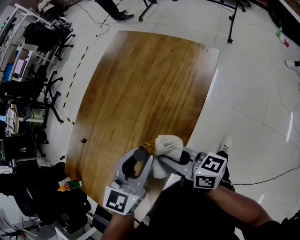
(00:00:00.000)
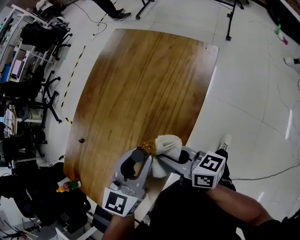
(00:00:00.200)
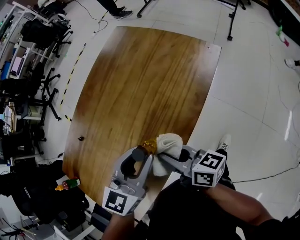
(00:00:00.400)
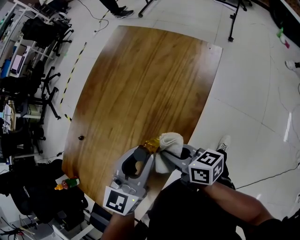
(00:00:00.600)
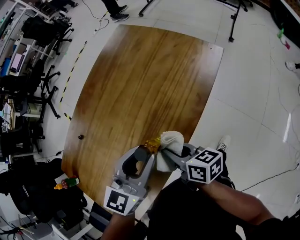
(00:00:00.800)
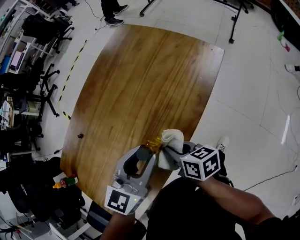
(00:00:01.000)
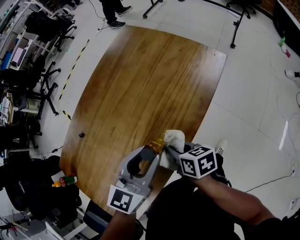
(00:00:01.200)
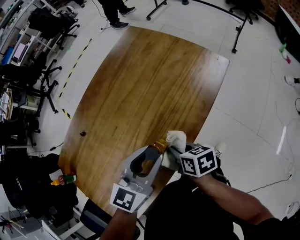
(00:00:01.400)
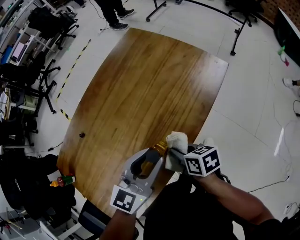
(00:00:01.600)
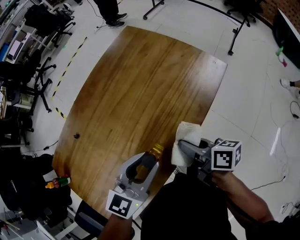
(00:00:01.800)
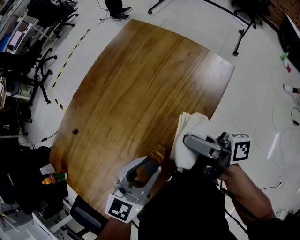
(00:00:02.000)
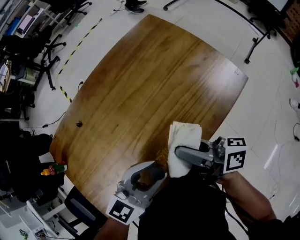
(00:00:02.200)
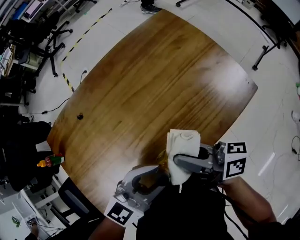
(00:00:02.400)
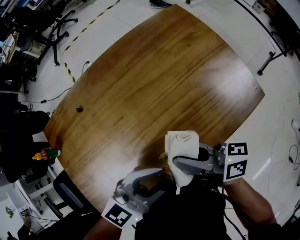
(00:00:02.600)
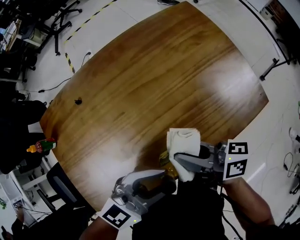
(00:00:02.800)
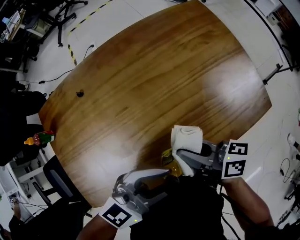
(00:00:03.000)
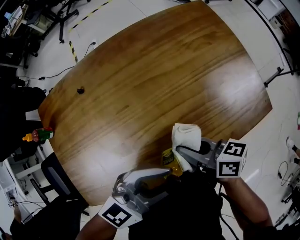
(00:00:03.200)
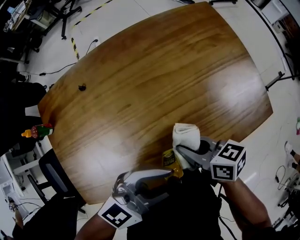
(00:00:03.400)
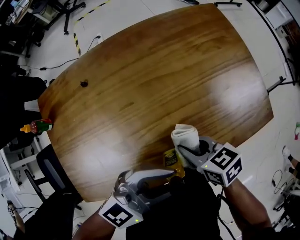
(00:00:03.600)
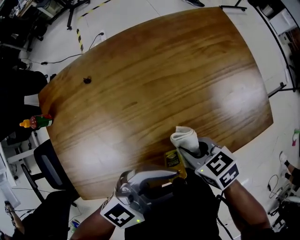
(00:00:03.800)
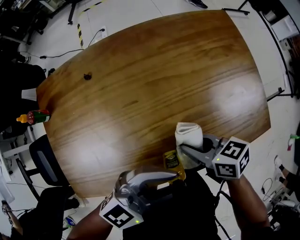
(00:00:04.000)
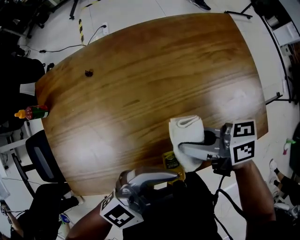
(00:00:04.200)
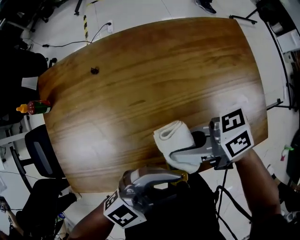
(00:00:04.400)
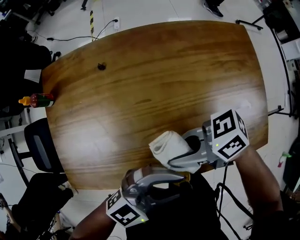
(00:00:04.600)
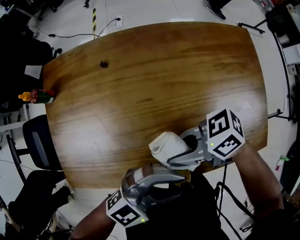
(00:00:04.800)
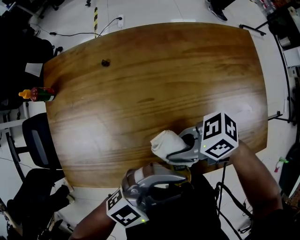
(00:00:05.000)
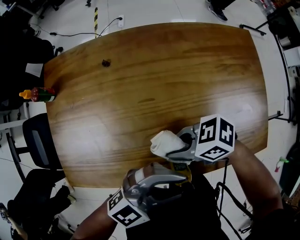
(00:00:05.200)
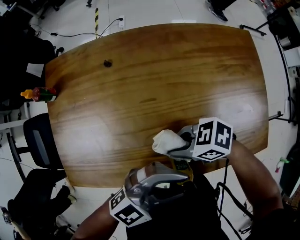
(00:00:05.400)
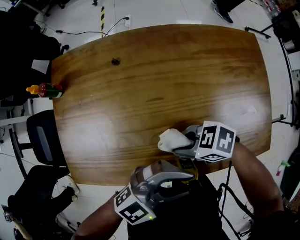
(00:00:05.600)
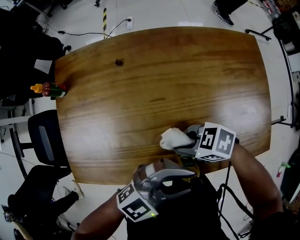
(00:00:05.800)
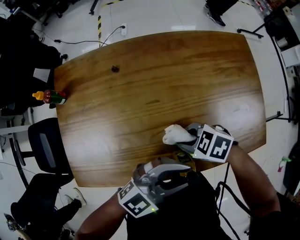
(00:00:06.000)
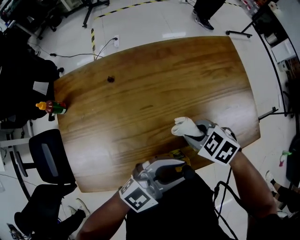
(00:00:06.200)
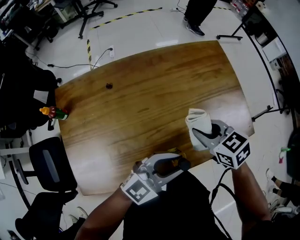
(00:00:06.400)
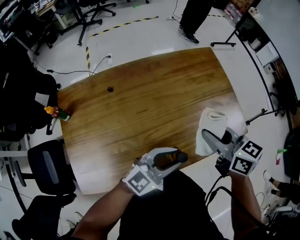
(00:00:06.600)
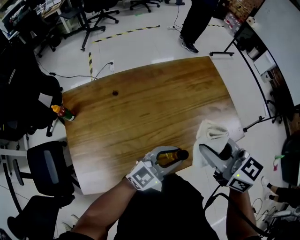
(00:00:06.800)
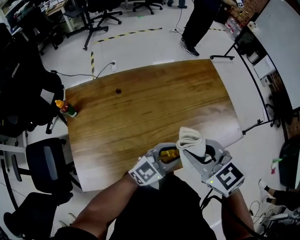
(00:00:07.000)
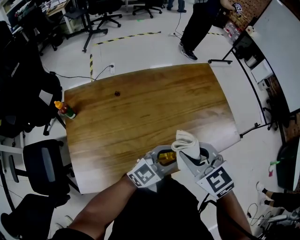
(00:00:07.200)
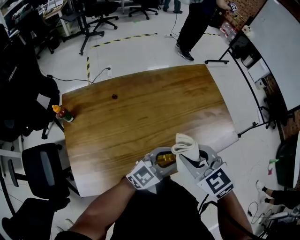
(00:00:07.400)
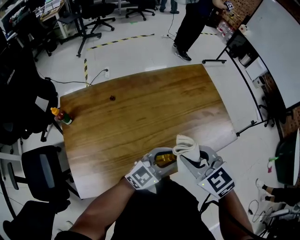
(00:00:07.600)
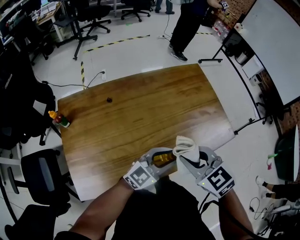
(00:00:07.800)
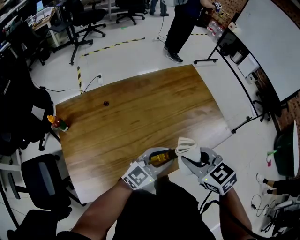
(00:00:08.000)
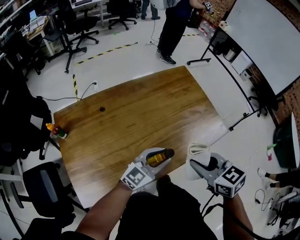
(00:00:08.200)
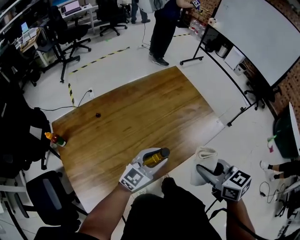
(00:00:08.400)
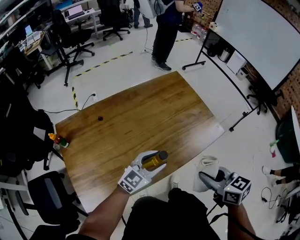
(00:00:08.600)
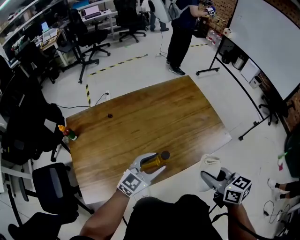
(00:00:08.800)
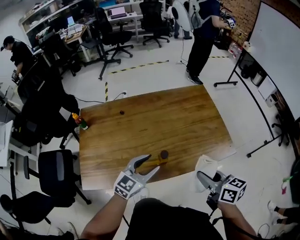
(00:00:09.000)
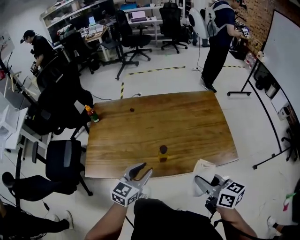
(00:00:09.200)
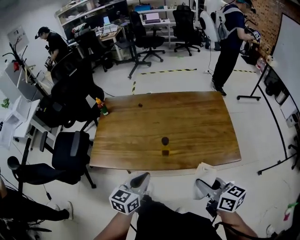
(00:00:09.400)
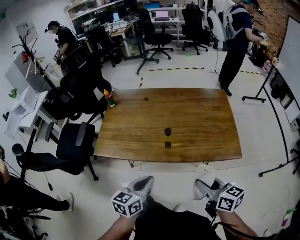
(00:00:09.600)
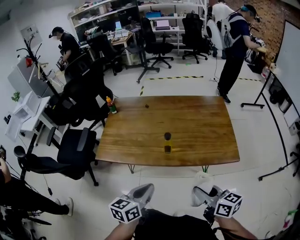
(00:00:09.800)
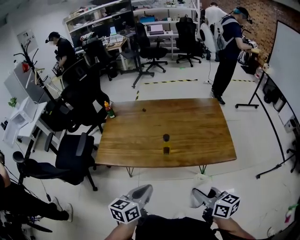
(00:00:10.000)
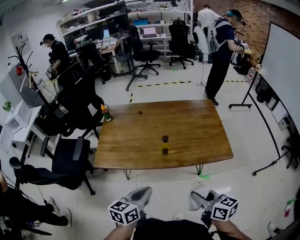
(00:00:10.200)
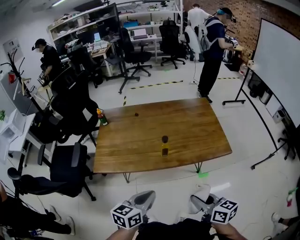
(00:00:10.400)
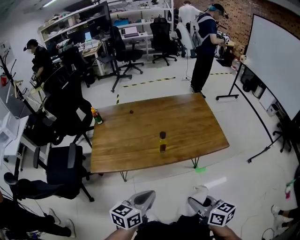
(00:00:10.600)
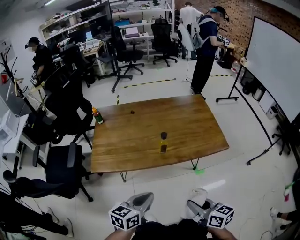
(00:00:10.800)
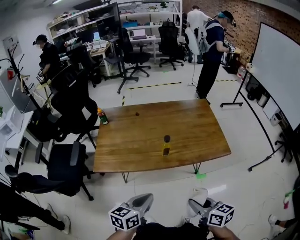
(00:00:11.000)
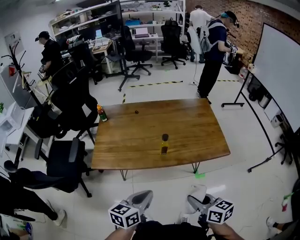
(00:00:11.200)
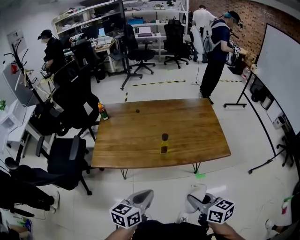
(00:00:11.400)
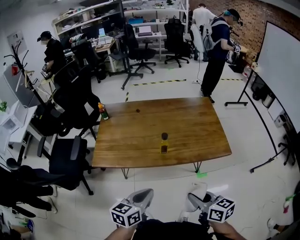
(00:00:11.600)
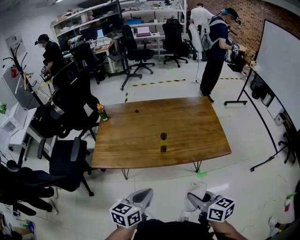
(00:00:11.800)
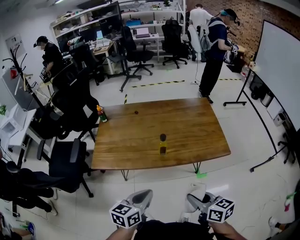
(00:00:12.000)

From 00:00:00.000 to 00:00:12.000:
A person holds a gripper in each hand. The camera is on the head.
From 00:00:00.000 to 00:00:01.600: The right gripper heads downward, covering roughly 10 cm, and points its fingers approximately 40 degrees further downward.
From 00:00:01.600 to 00:00:03.000: The right gripper is displaced upward by about 10 cm, and tilts its fingers about 30 degrees upward.
From 00:00:03.000 to 00:00:04.400: The right gripper shifts by some 10 cm, and turns by some 50 degrees.
From 00:00:04.400 to 00:00:06.000: The right gripper goes approximately 10 cm downward, and tilts its fingers some 40 degrees downward.
From 00:00:06.000 to 00:00:07.600: The right gripper heads upward, covering approximately 20 cm, and swivels about 50 degrees.
From 00:00:07.600 to 00:00:09.000: The left gripper swivels some 30 degrees, and opens up, while the right gripper heads to the right, covering approximately 20 cm, and twists roughly 40 degrees clockwise, seen from behind.
From 00:00:09.000 to 00:00:10.400: The two grippers go roughly 20 cm backward. The left gripper rotates some 40 degrees, and closes up.
From 00:00:10.400 to 00:00:12.000: The grippers move only a little.

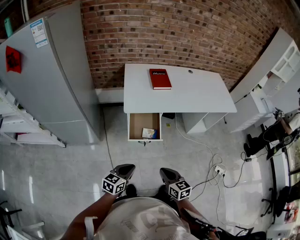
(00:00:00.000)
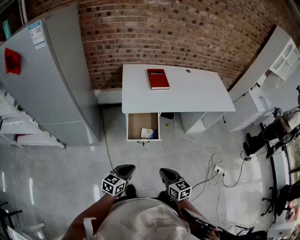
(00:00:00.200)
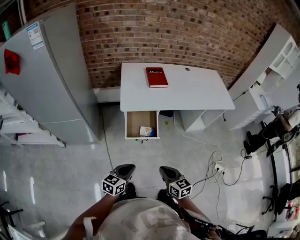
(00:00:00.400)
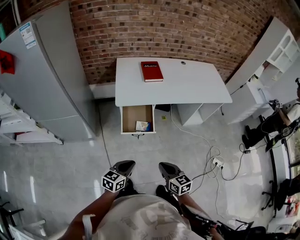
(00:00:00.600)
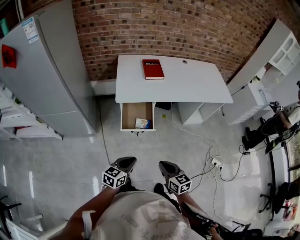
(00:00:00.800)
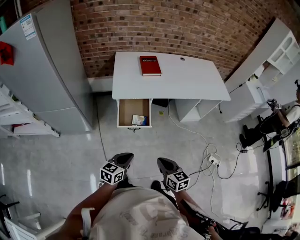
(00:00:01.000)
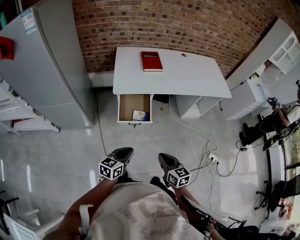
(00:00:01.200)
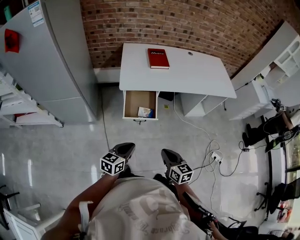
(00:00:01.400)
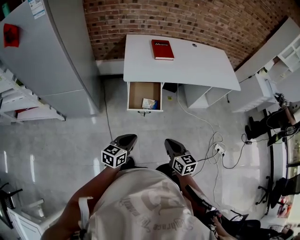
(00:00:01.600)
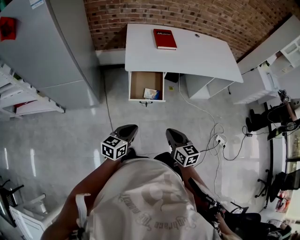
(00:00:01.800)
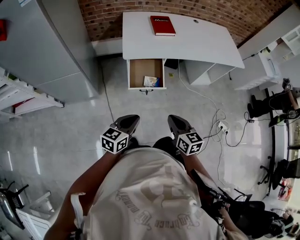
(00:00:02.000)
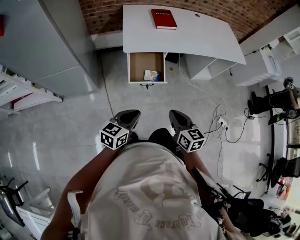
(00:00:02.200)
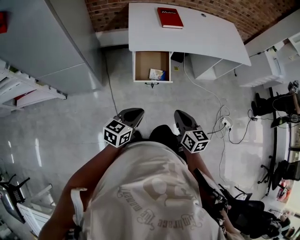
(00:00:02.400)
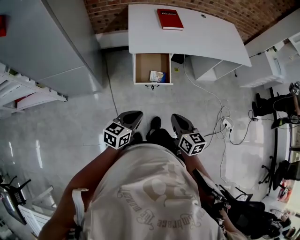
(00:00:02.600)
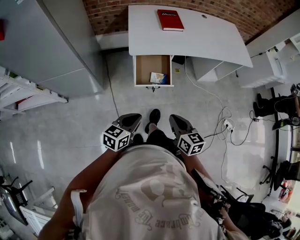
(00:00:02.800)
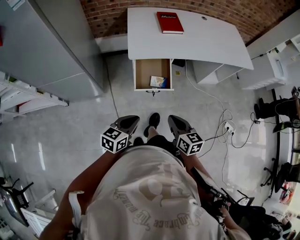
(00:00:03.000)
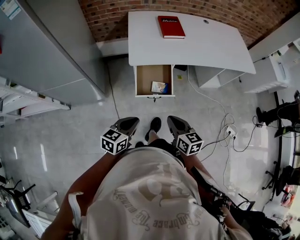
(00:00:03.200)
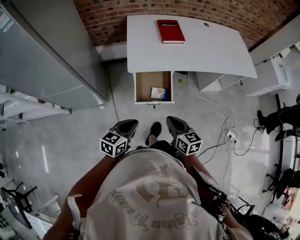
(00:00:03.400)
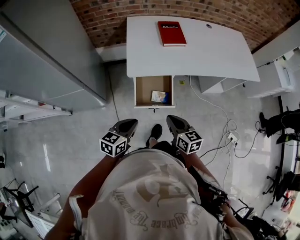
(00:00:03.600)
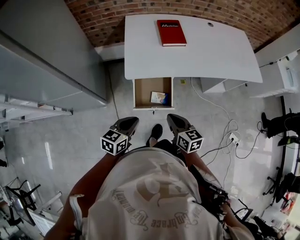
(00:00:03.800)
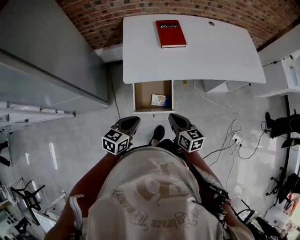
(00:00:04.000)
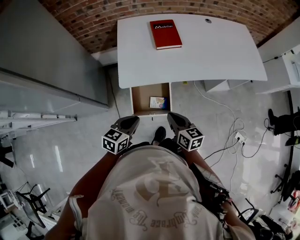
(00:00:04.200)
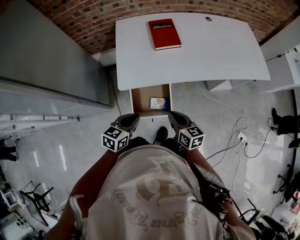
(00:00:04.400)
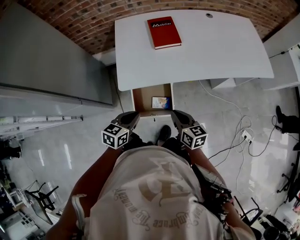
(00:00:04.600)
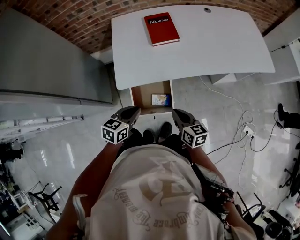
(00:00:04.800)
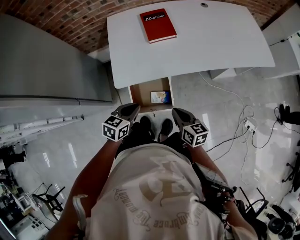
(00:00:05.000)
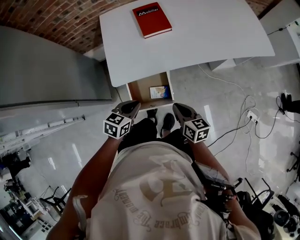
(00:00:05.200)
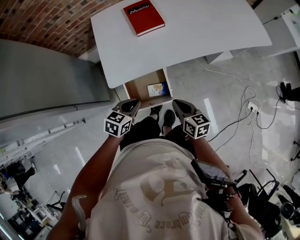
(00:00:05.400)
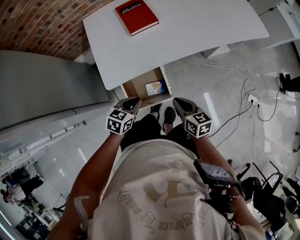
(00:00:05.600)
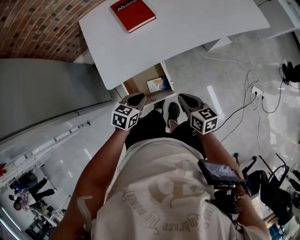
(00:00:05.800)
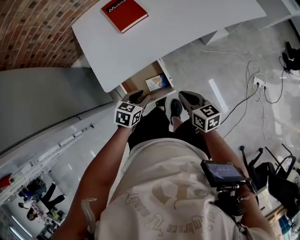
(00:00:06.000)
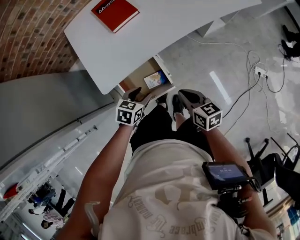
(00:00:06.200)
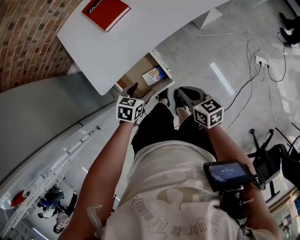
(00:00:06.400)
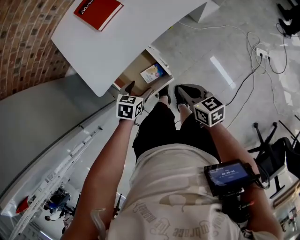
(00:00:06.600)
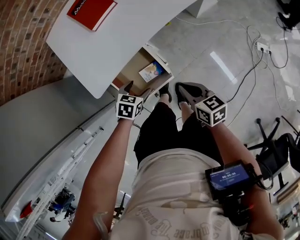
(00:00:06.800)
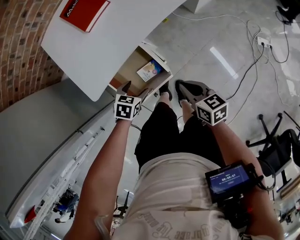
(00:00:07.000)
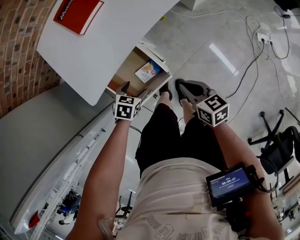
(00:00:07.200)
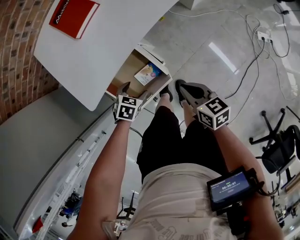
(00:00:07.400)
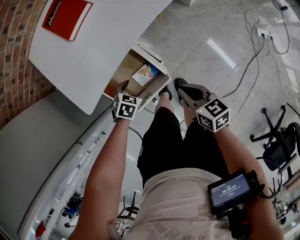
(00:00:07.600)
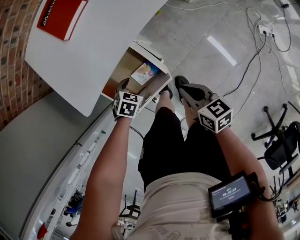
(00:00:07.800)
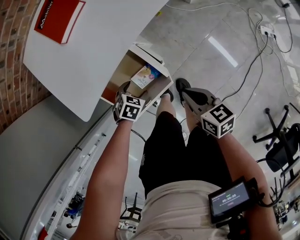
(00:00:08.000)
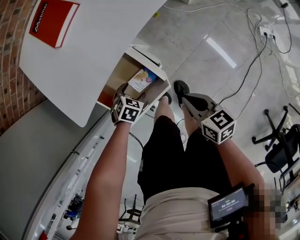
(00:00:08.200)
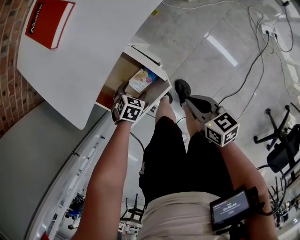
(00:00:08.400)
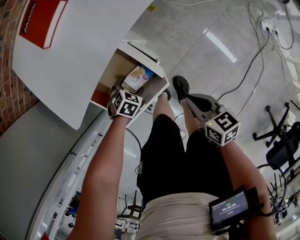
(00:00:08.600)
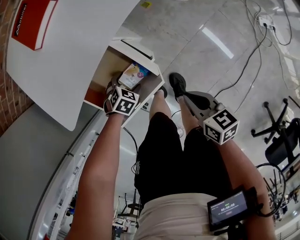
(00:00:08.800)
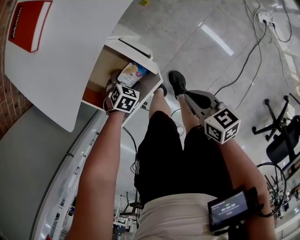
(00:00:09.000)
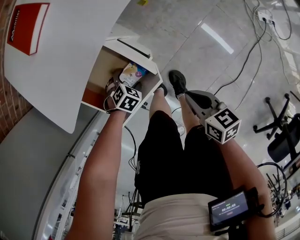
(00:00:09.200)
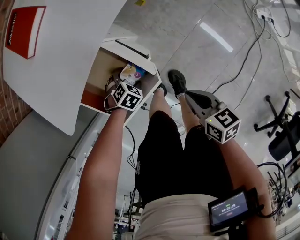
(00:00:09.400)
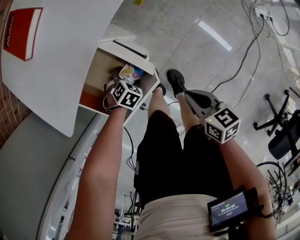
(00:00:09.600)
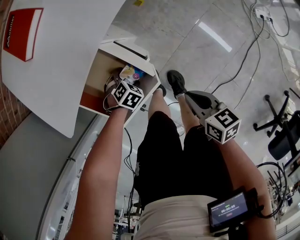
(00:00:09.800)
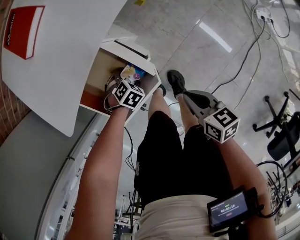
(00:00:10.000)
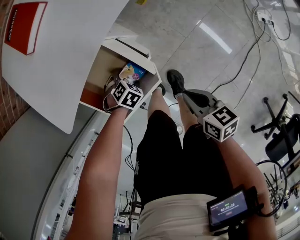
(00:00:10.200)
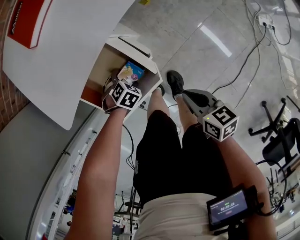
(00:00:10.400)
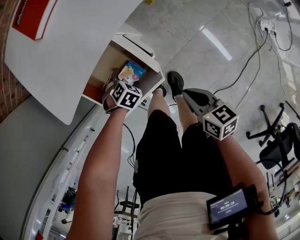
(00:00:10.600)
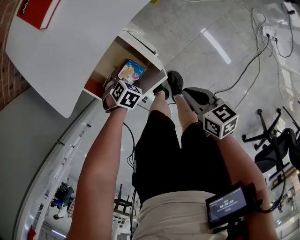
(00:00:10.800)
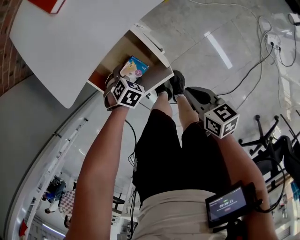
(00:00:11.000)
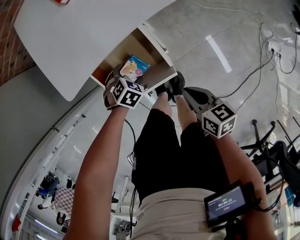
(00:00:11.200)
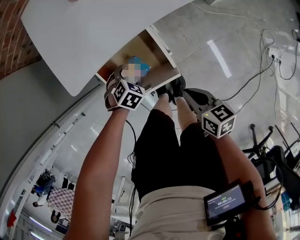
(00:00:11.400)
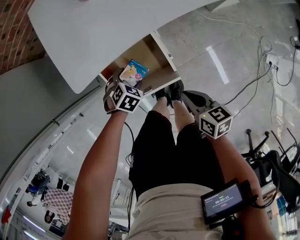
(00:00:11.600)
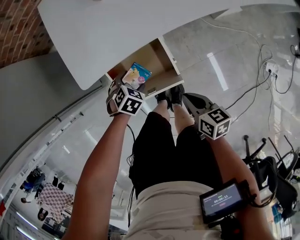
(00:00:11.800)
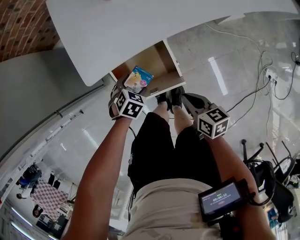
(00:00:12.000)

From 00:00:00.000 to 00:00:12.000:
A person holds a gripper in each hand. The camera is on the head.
From 00:00:01.600 to 00:00:03.000: The right gripper is displaced to the left by some 5 cm. Meanwhile the left gripper changes place by about 5 cm.
From 00:00:03.000 to 00:00:04.400: The two grippers go approximately 25 cm forward.
From 00:00:04.400 to 00:00:06.000: The right gripper travels to the right and downward by some 10 cm. Meanwhile the left gripper travels downward, forward and to the right by approximately 15 cm, and changes its angle by some 30 degrees.
From 00:00:06.000 to 00:00:07.600: The left gripper shifts approximately 20 cm downward, turns by about 30 degrees, and opens its fingers; the right gripper shifts some 10 cm downward.
From 00:00:07.600 to 00:00:09.000: Both grippers move downward, about 10 cm.
From 00:00:09.000 to 00:00:10.400: The grippers make only small movements.
From 00:00:10.400 to 00:00:12.000: The left gripper is displaced upward by about 15 cm, and swivels about 30 degrees; the right gripper changes place by some 10 cm.
